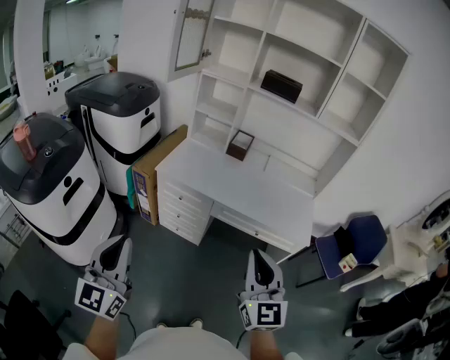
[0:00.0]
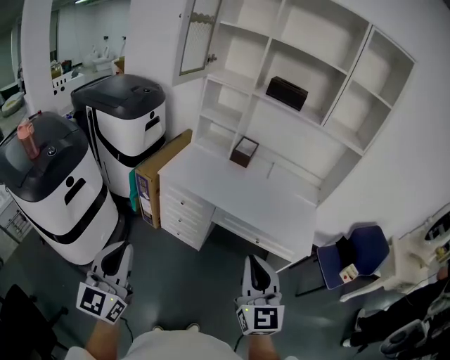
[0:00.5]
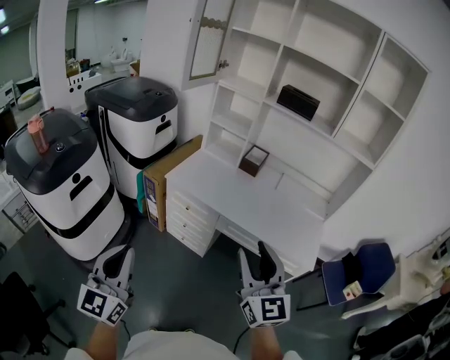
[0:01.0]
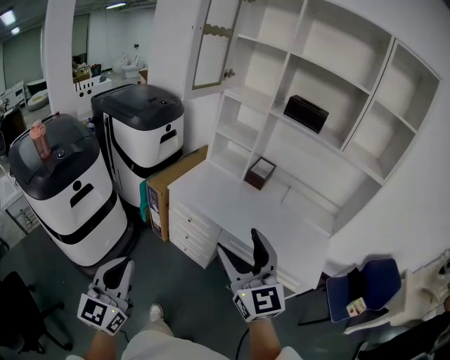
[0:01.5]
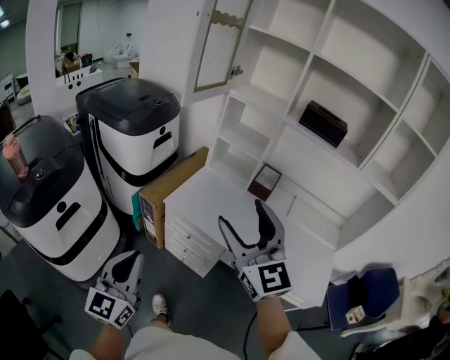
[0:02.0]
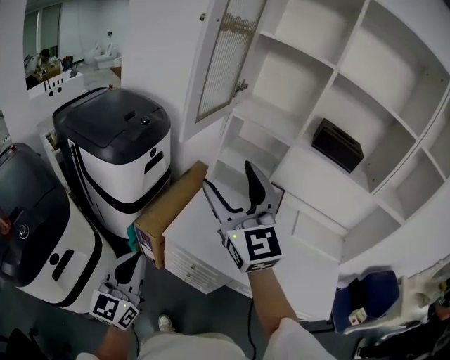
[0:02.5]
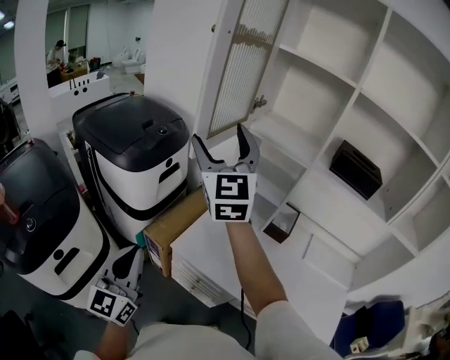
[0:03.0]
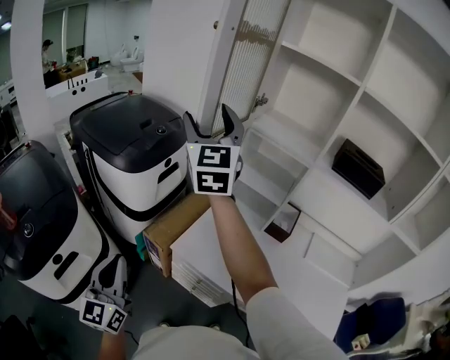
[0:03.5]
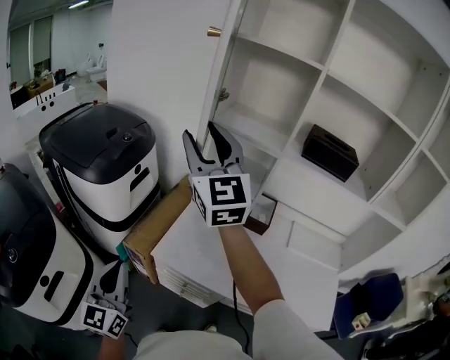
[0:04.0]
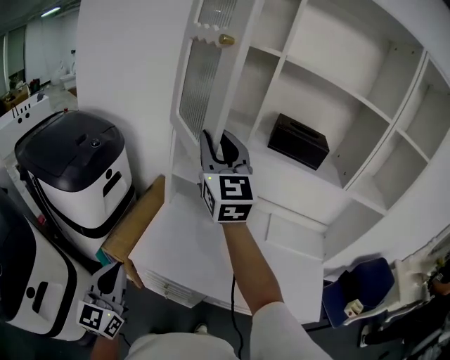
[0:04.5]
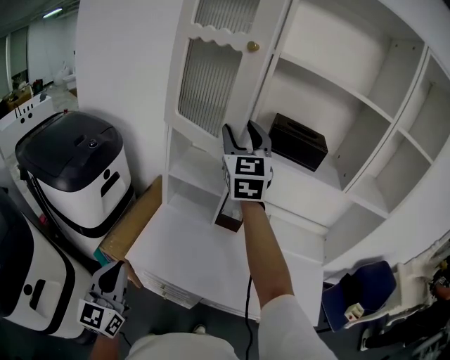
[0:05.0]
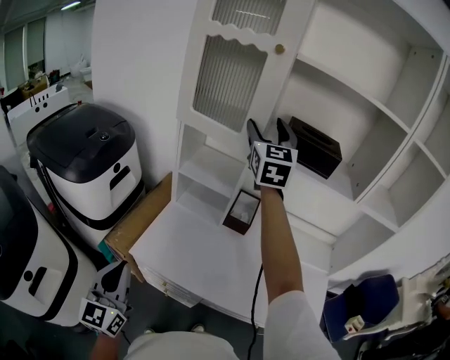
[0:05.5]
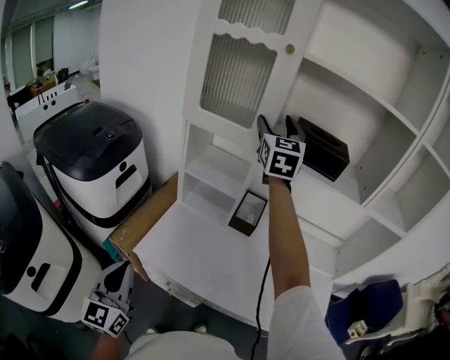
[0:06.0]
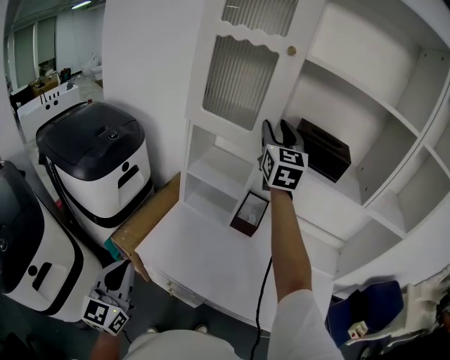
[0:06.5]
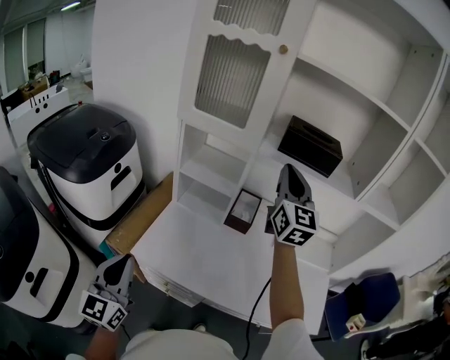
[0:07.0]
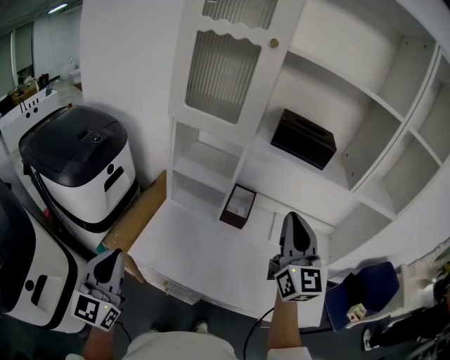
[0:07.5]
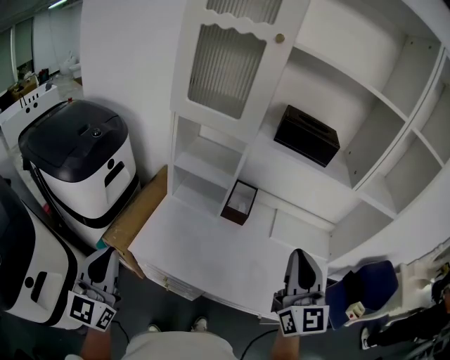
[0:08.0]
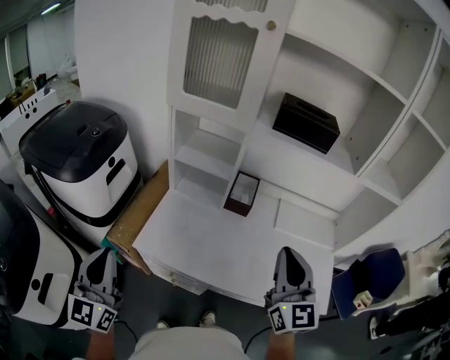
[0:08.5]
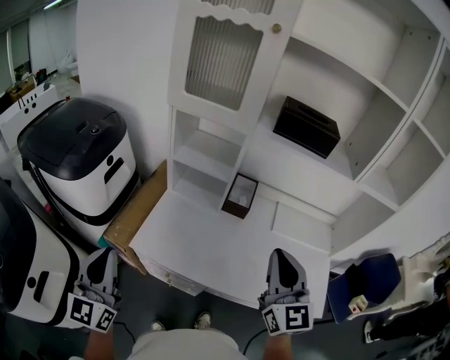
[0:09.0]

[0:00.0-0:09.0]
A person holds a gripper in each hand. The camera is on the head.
0:00.0 to 0:02.0: The left gripper shifts some 20 cm forward, while the right gripper shifts roughly 30 cm forward, rotates roughly 30 degrees, and opens.
0:02.0 to 0:04.5: The two grippers go roughly 30 cm forward. The right gripper closes up.
0:04.5 to 0:07.0: The right gripper is displaced to the right by some 20 cm, and opens and closes again.
0:07.0 to 0:09.0: The right gripper heads backward and downward, covering some 25 cm.

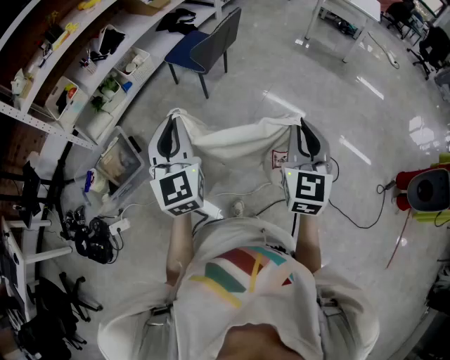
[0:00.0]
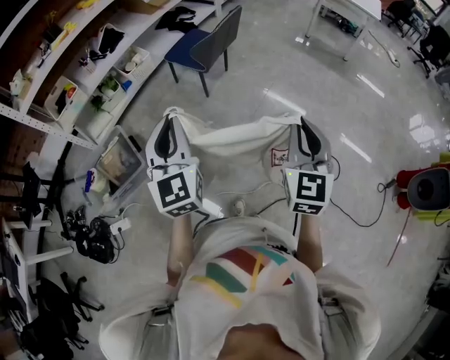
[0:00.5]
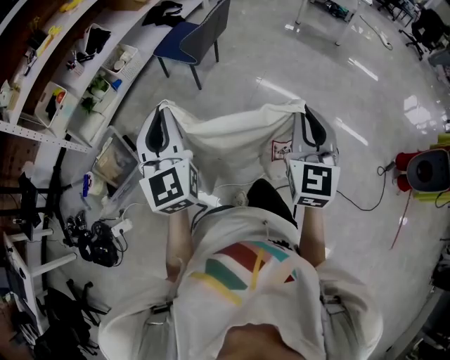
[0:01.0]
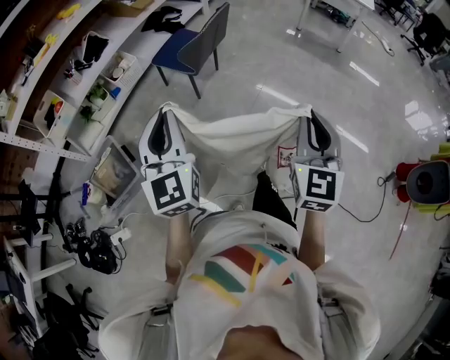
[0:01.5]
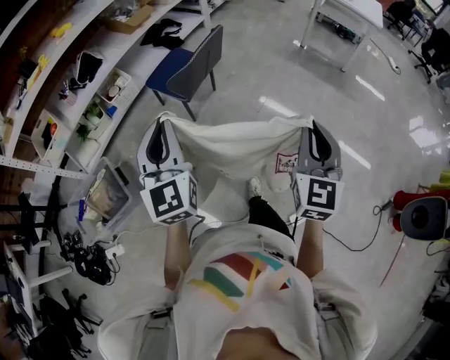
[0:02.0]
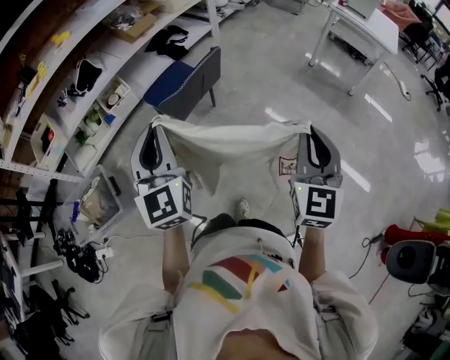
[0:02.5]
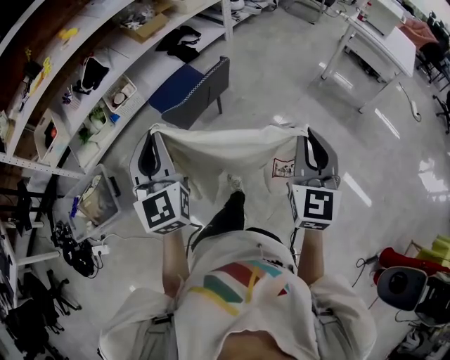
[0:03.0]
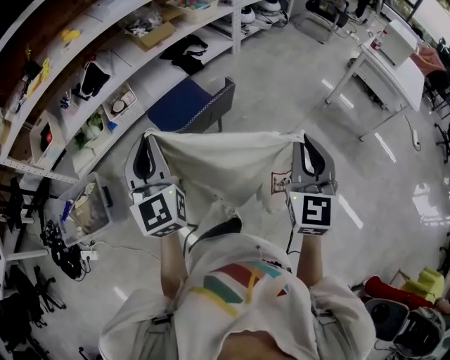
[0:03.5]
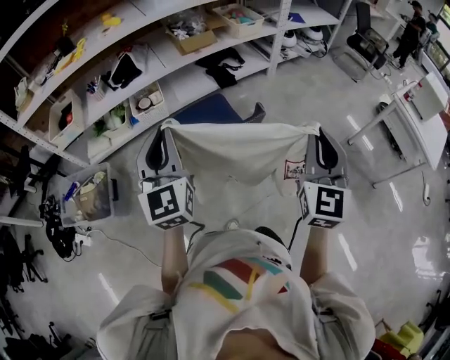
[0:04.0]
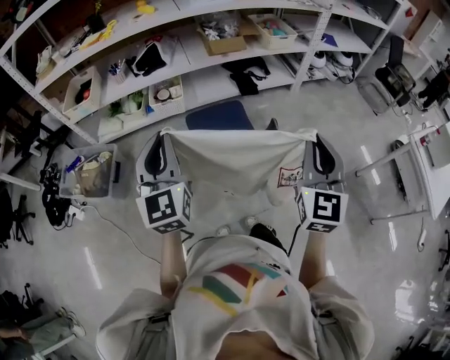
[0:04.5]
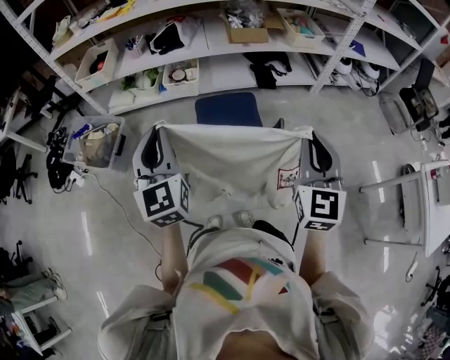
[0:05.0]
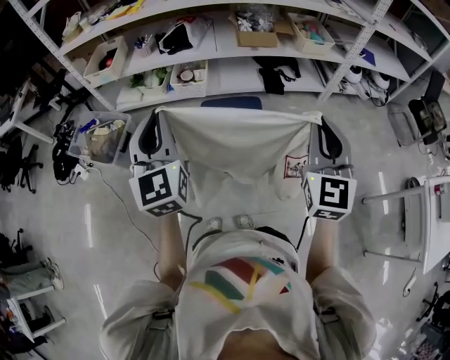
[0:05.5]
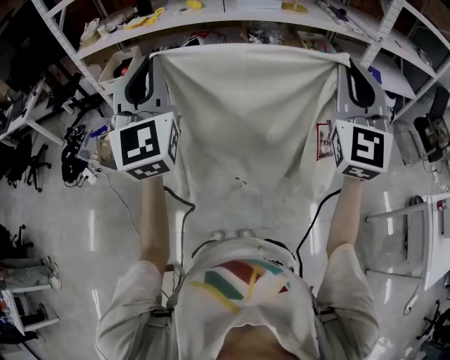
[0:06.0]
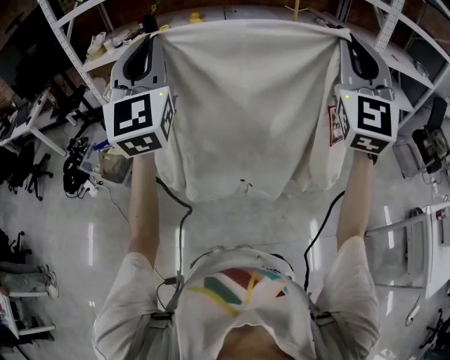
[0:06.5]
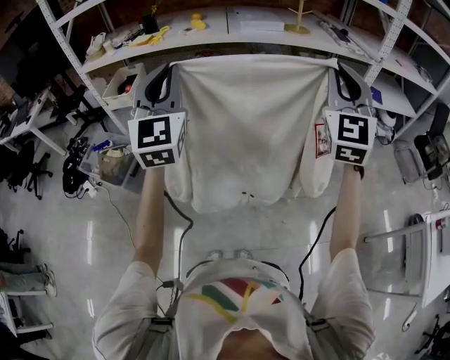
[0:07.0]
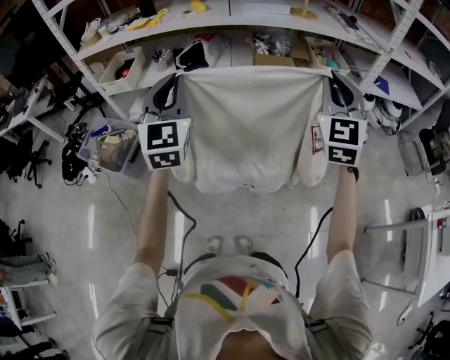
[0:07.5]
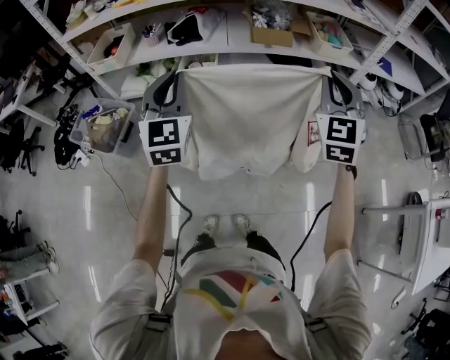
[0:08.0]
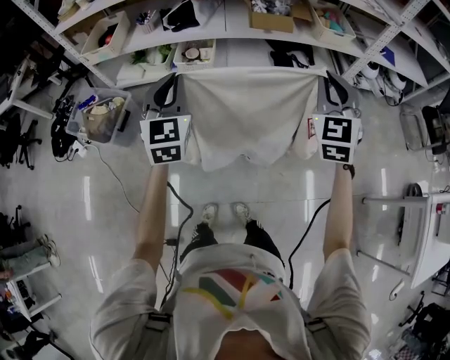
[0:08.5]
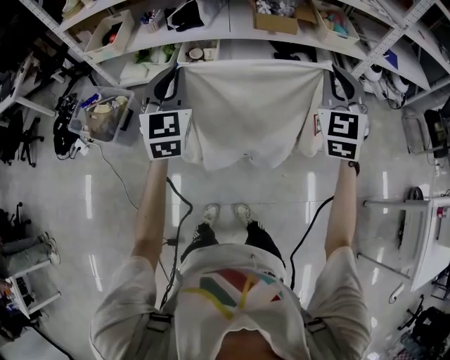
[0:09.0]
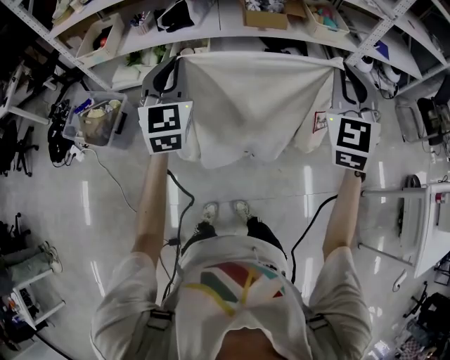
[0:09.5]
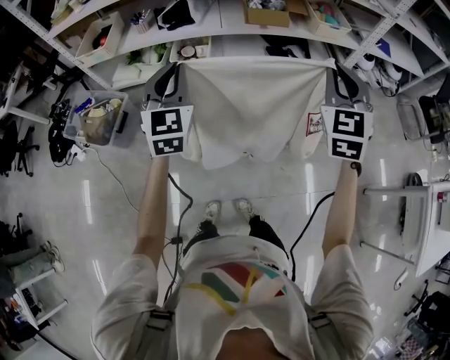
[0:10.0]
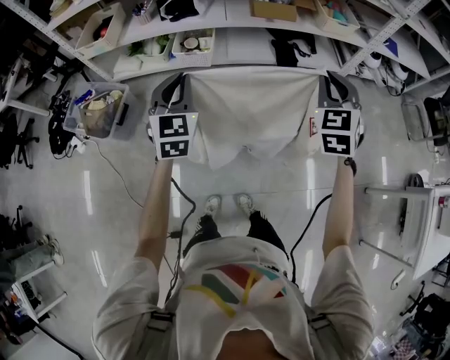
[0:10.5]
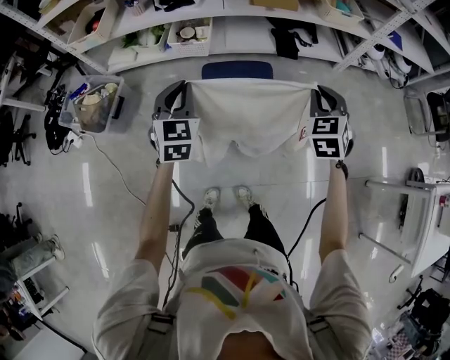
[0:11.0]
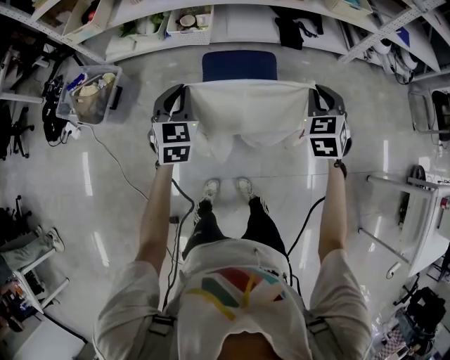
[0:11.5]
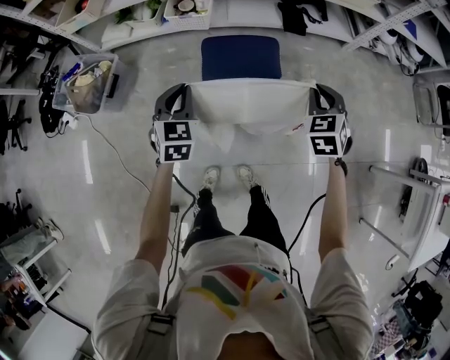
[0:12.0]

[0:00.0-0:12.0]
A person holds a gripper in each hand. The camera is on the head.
0:00.0 to 0:02.0: The grippers both shift forward and to the right by about 25 cm.
0:02.0 to 0:04.0: The left gripper changes place by some 30 cm, and swivels some 30 degrees. Meanwhile the right gripper ends up roughly 50 cm from where it was, and rotates approximately 30 degrees.
0:04.0 to 0:06.0: The left gripper heads upward, covering approximately 15 cm, and changes its angle by approximately 30 degrees. The right gripper shifts by about 25 cm, and changes its angle by approximately 40 degrees.
0:06.0 to 0:08.0: The two grippers go some 20 cm downward and forward. The right gripper rotates roughly 20 degrees.
0:08.0 to 0:10.0: The right gripper goes up and down, about 5 cm each way, reversing 2 times.
0:10.0 to 0:12.0: The grippers both shift downward by some 25 cm. The left gripper rotates about 30 degrees; the right gripper swivels some 30 degrees.

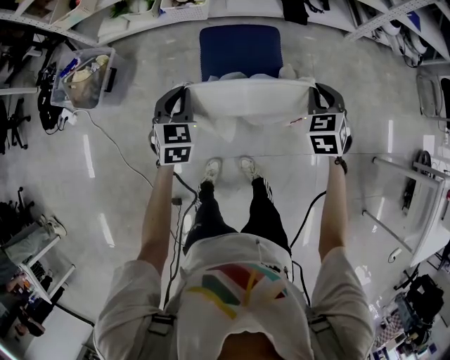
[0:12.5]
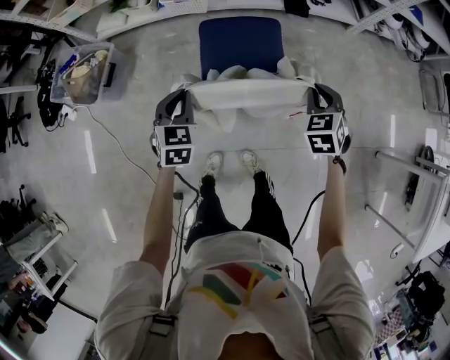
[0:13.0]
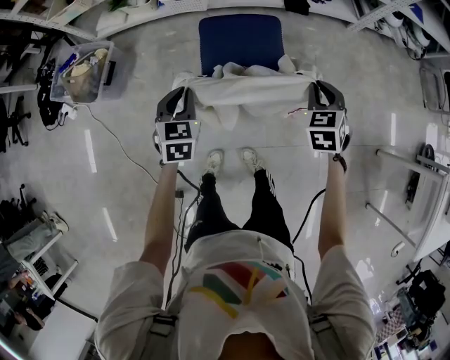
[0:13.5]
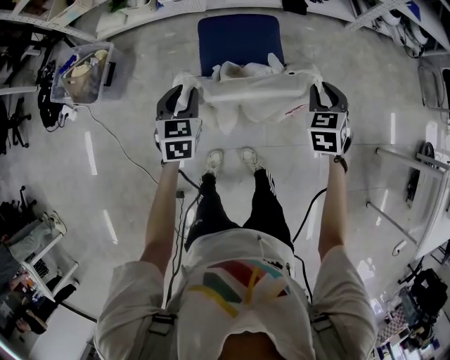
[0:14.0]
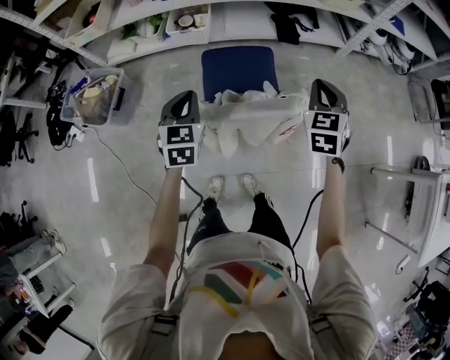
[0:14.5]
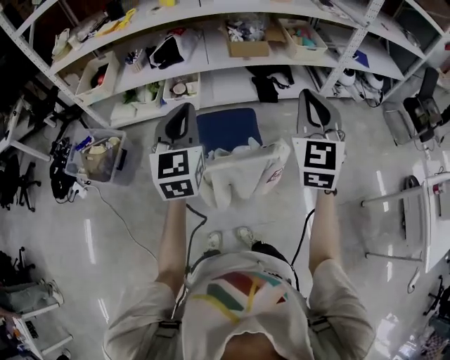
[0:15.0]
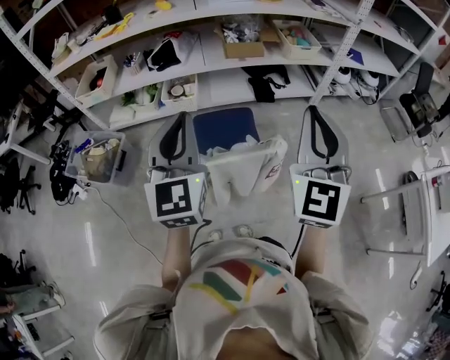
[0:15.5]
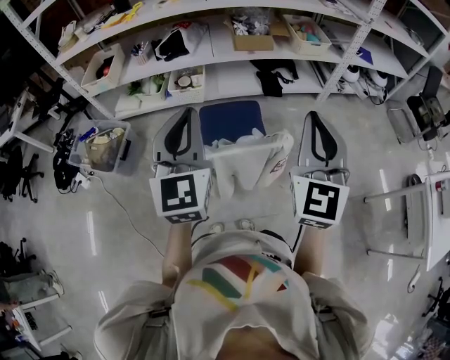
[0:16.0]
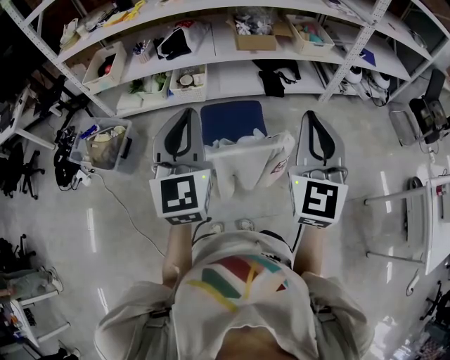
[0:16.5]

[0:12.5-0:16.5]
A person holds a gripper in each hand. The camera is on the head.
0:12.5 to 0:14.5: The two grippers go approximately 10 cm upward. The left gripper opens, then closes again.
0:14.5 to 0:16.5: The right gripper shifts approximately 25 cm upward and backward, and tilts its fingers roughly 30 degrees upward; the left gripper moves upward, about 25 cm, and changes its angle by approximately 30 degrees.

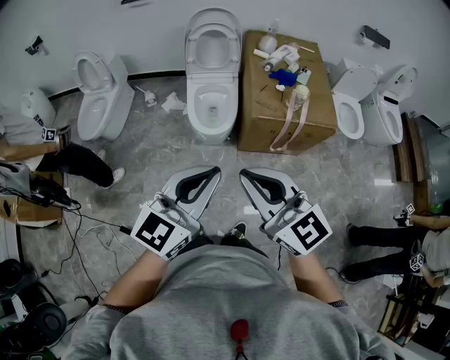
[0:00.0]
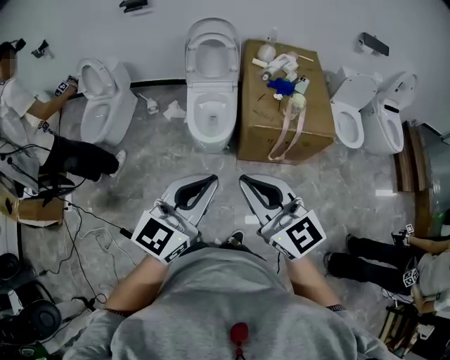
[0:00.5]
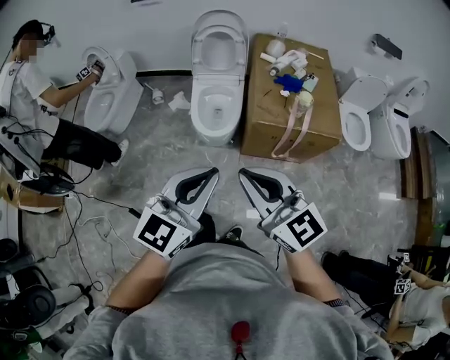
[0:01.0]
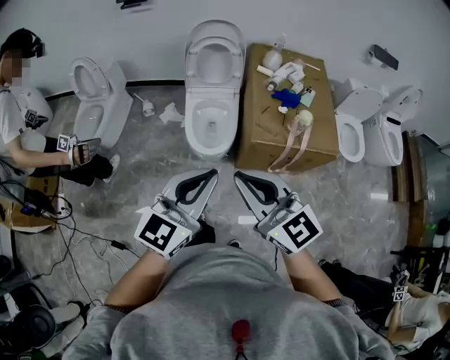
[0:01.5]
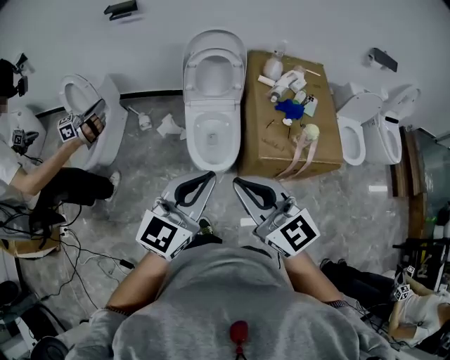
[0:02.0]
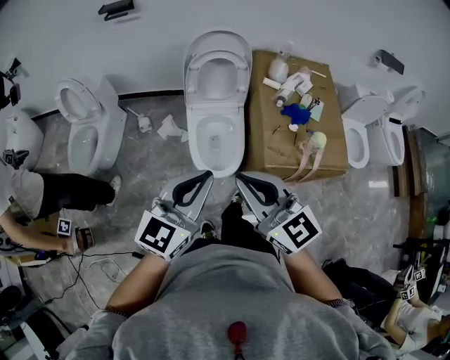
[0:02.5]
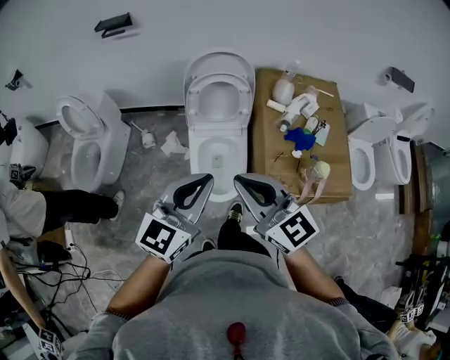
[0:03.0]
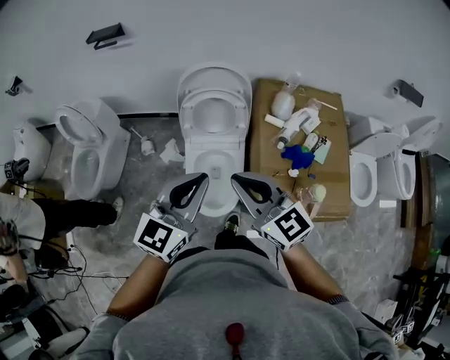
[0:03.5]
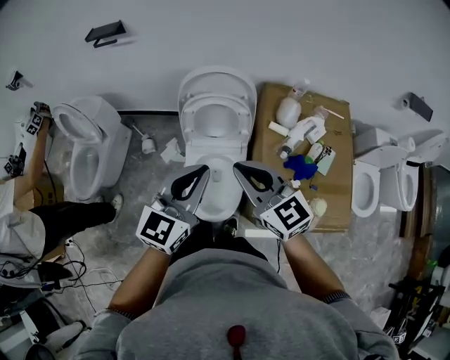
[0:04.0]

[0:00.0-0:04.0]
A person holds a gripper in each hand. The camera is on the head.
0:00.0 to 0:02.0: Both grippers travel together forward, some 20 cm.
0:02.0 to 0:04.0: Both grippers move forward, some 35 cm.
